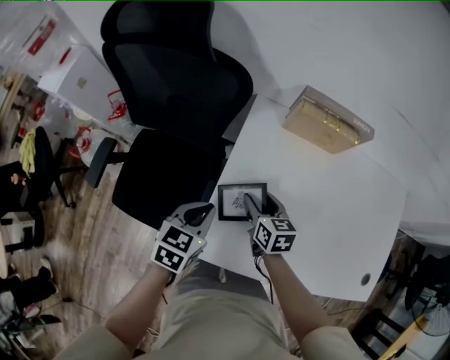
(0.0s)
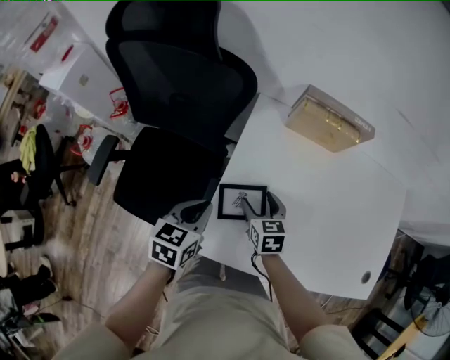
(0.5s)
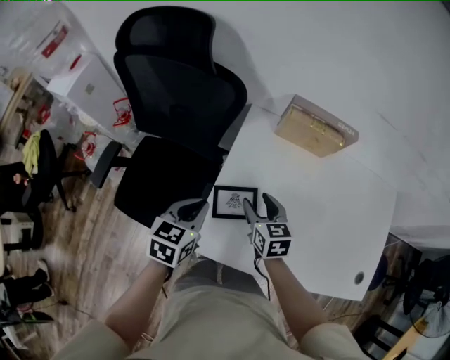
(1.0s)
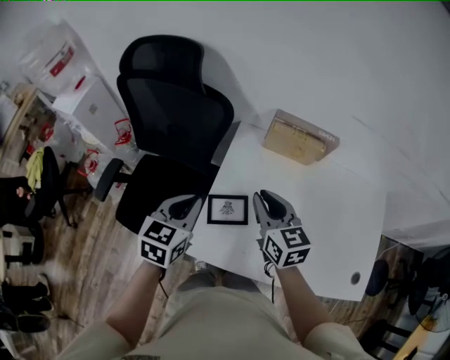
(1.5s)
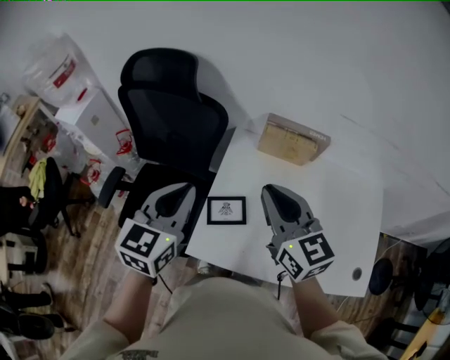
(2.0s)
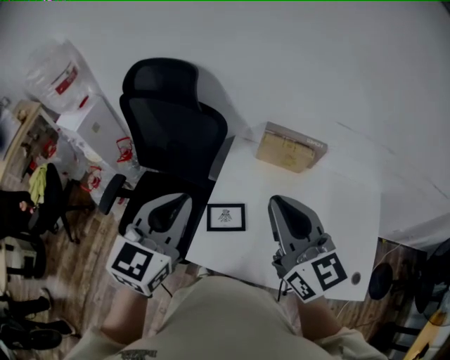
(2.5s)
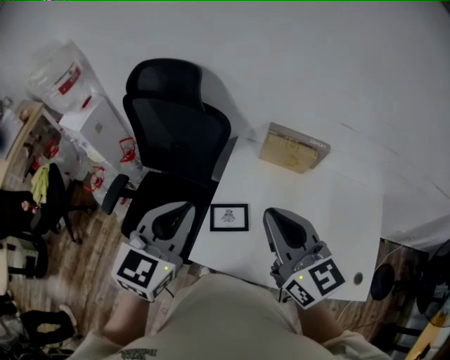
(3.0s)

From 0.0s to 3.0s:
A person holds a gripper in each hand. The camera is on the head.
From 0.0s to 1.5s: The right gripper goes approximately 20 cm upward, changes its angle by some 20 degrees, and closes. The left gripper travels upward by roughly 15 cm.
From 1.5s to 3.0s: The left gripper moves upward, some 15 cm; the right gripper goes approximately 20 cm upward and backward.

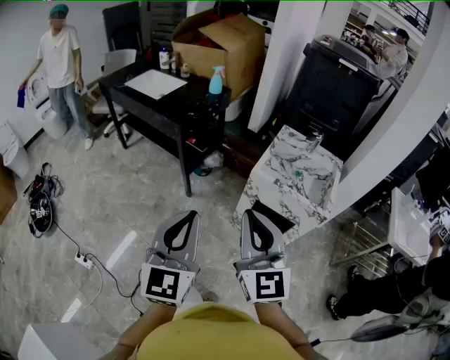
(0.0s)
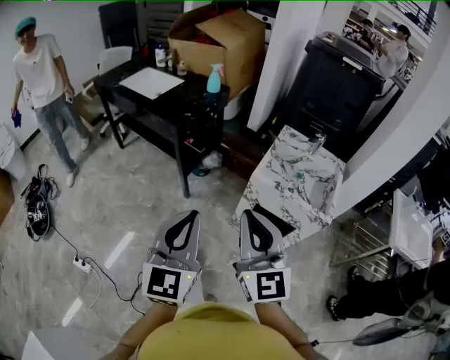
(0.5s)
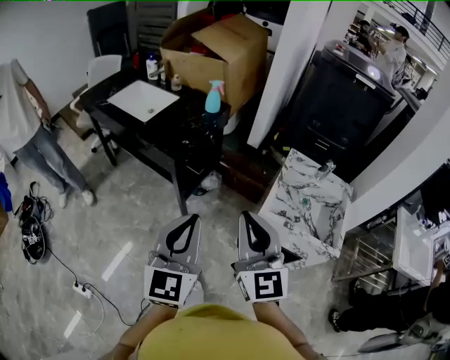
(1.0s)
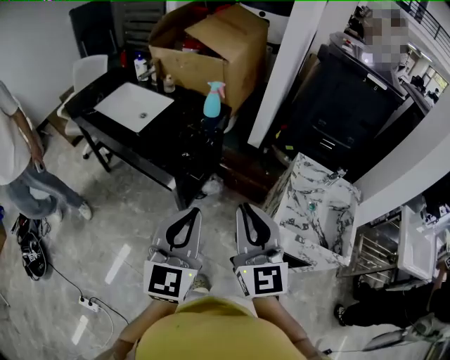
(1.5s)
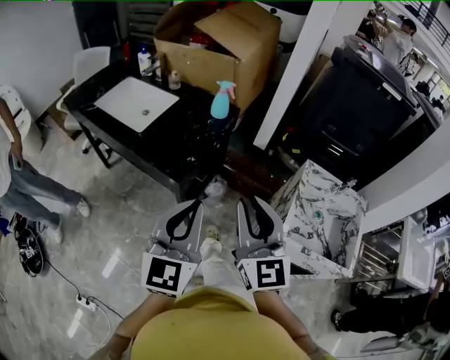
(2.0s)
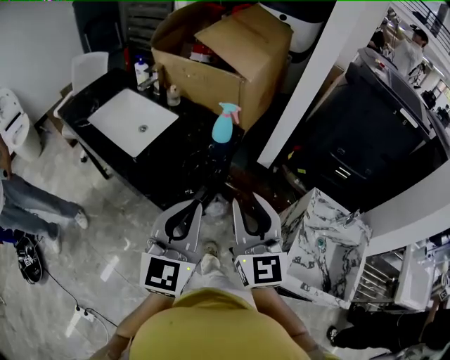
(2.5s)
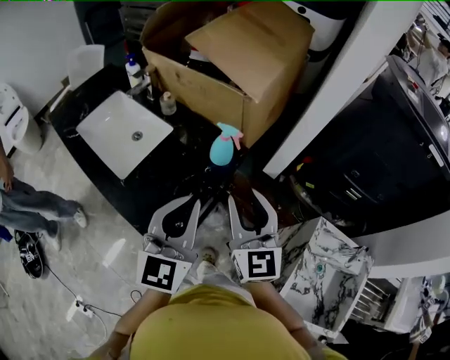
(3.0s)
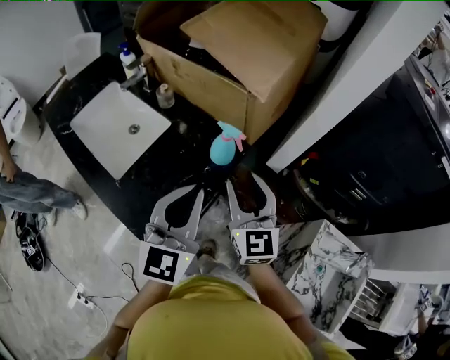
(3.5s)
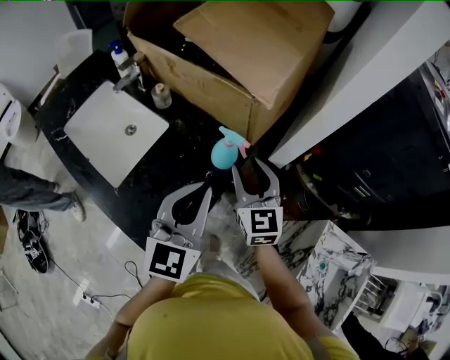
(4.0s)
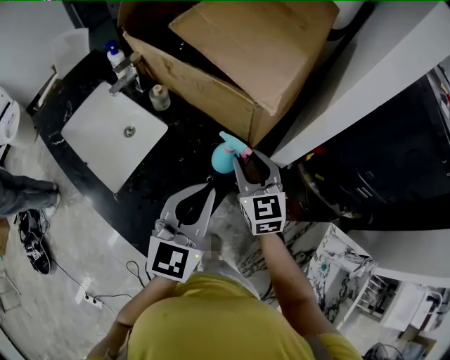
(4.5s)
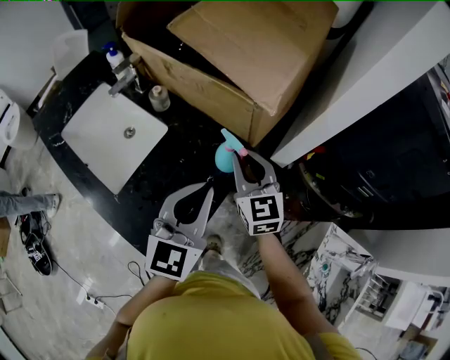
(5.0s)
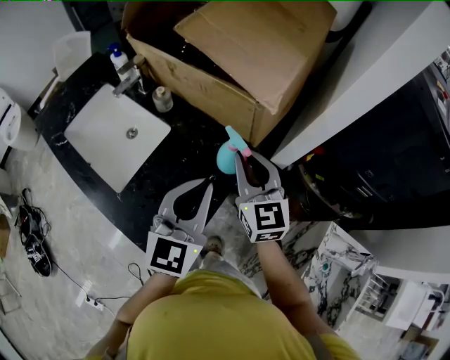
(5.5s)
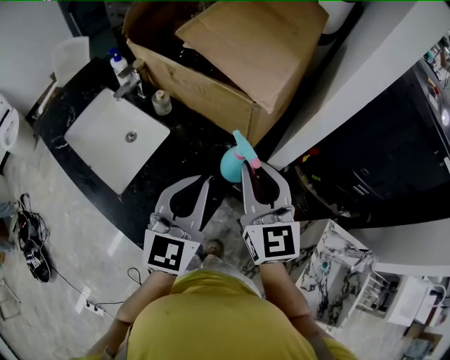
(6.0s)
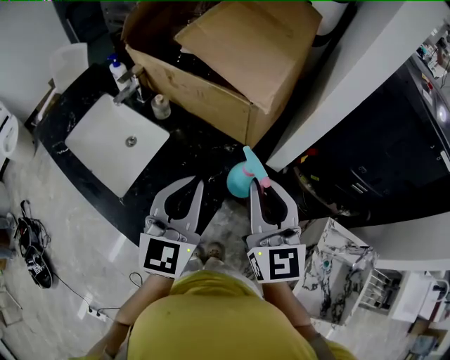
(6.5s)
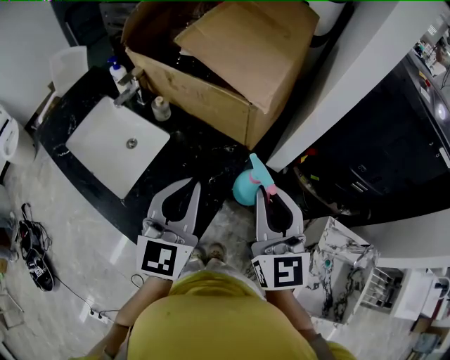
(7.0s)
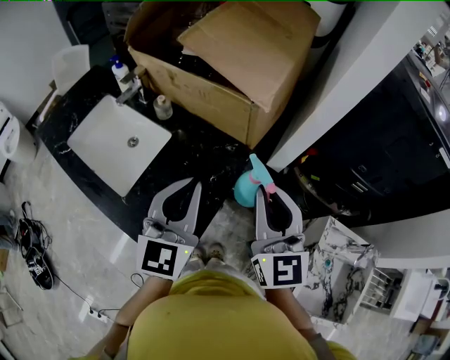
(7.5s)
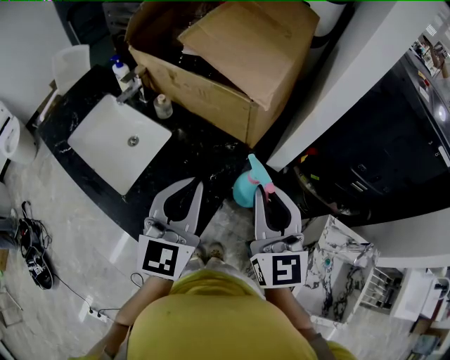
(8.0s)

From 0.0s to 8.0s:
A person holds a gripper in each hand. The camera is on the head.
From 0.0s to 2.0s: The two grippers travel together, forward, about 40 cm.
From 2.0s to 4.0s: Both grippers are carried forward, about 40 cm.
From 4.0s to 6.0s: The right gripper goes some 10 cm upward, and closes.
From 6.0s to 8.0s: The right gripper moves backward, about 5 cm.

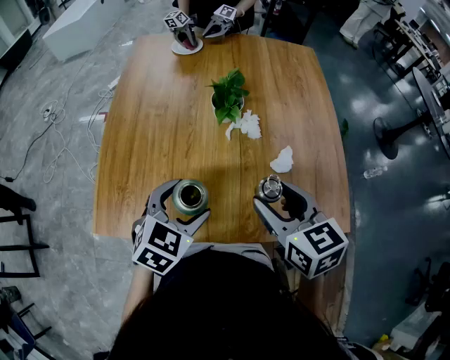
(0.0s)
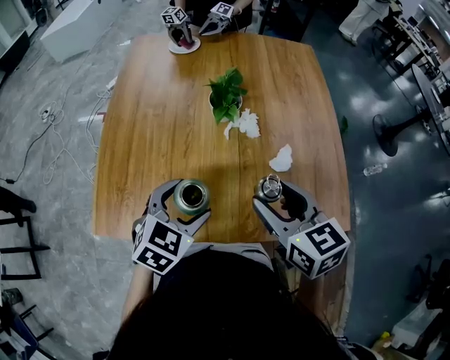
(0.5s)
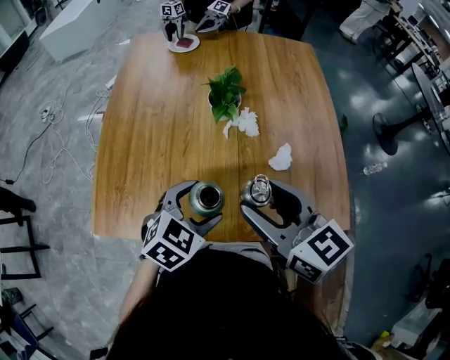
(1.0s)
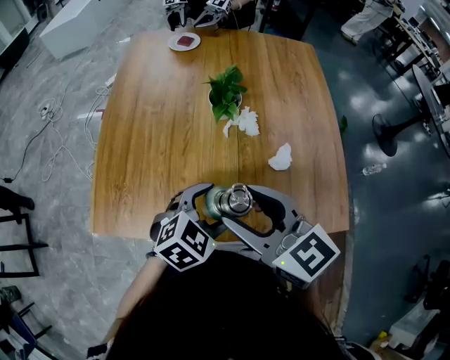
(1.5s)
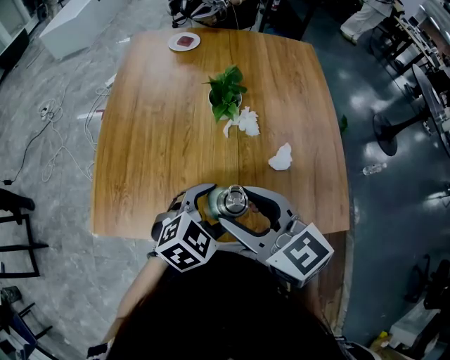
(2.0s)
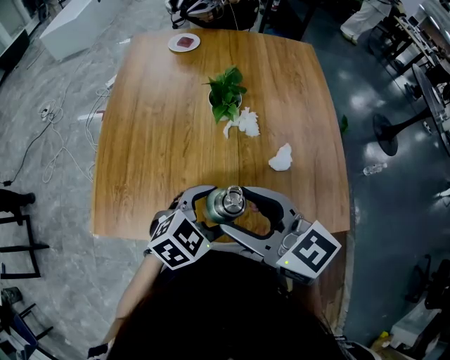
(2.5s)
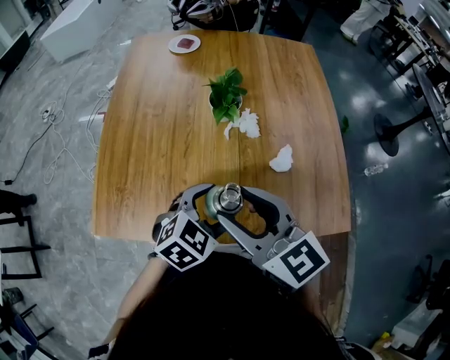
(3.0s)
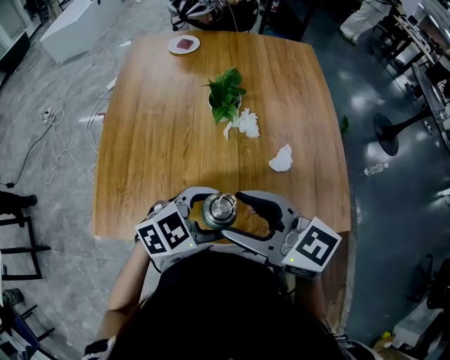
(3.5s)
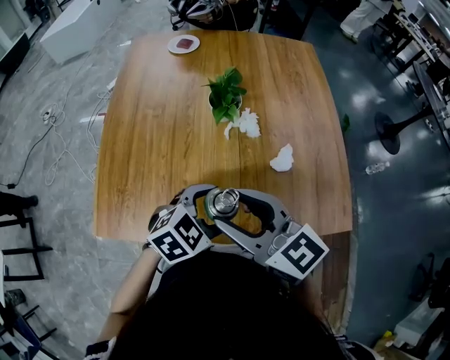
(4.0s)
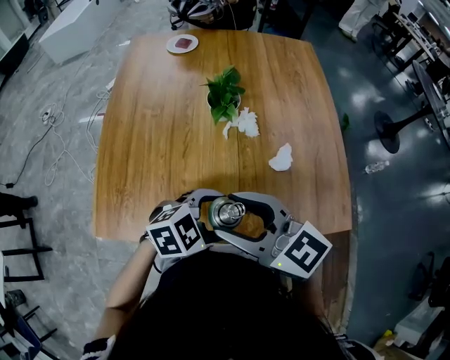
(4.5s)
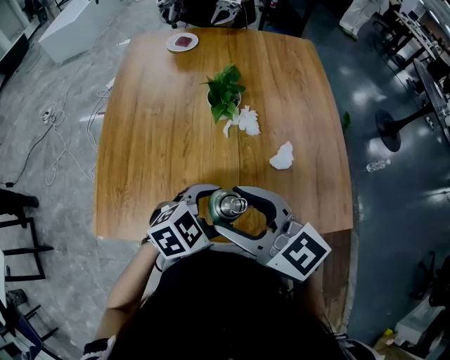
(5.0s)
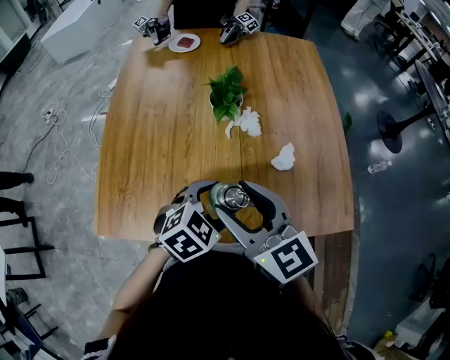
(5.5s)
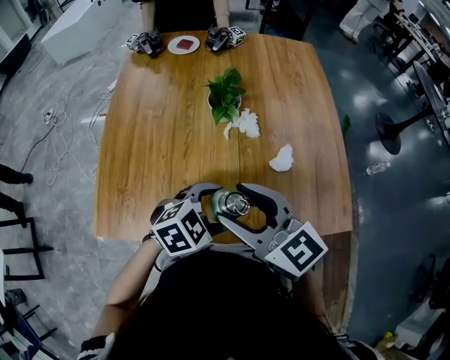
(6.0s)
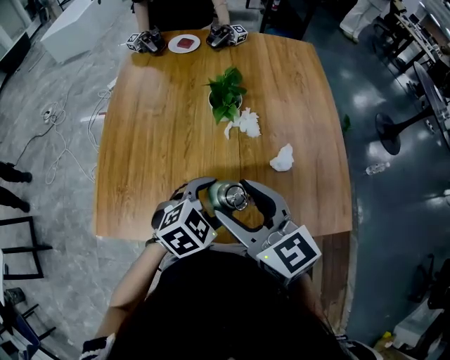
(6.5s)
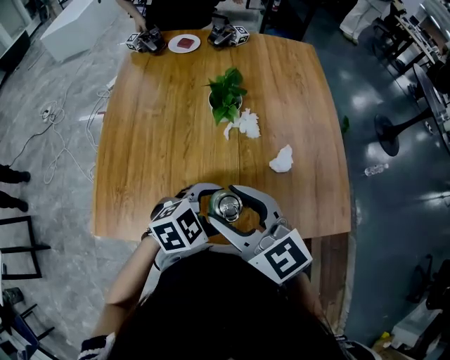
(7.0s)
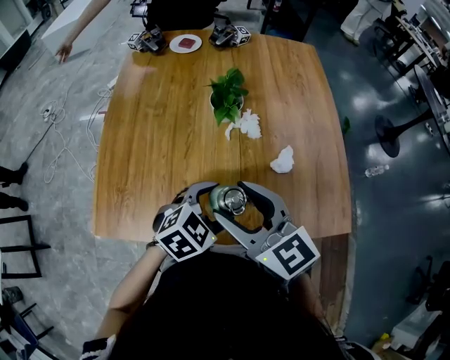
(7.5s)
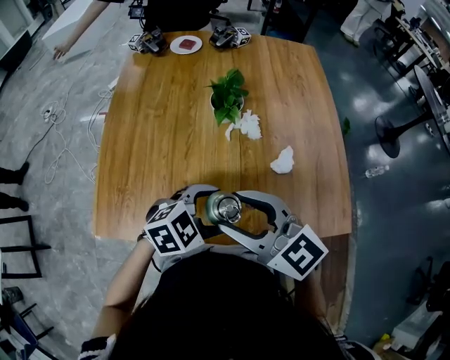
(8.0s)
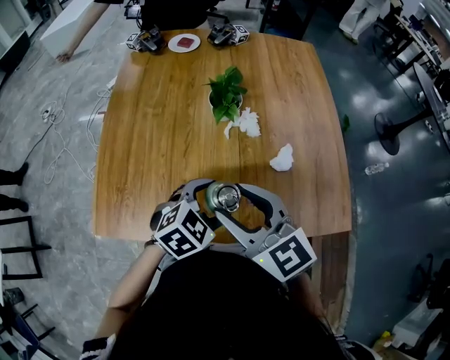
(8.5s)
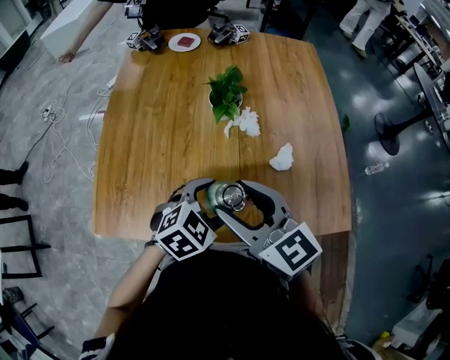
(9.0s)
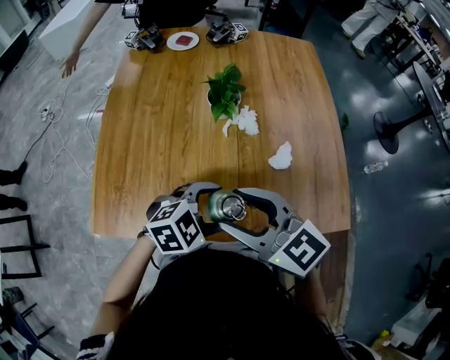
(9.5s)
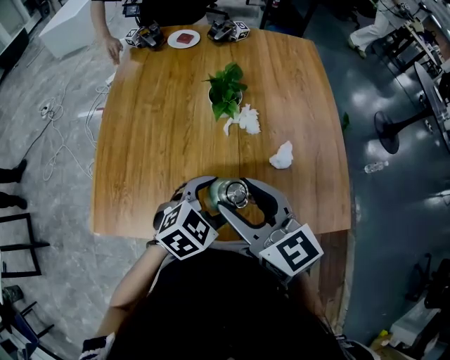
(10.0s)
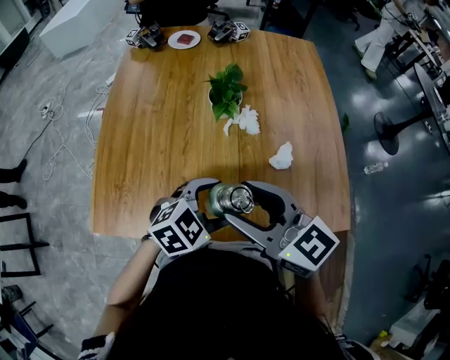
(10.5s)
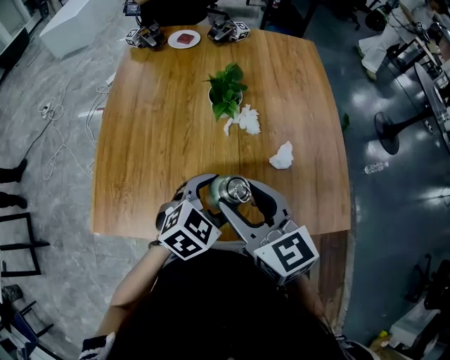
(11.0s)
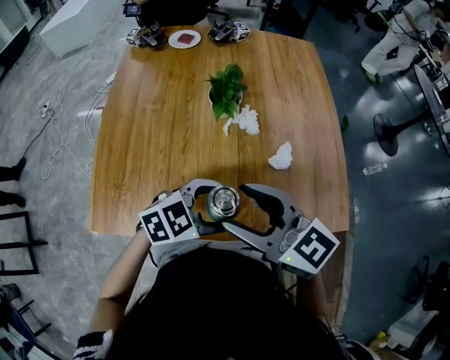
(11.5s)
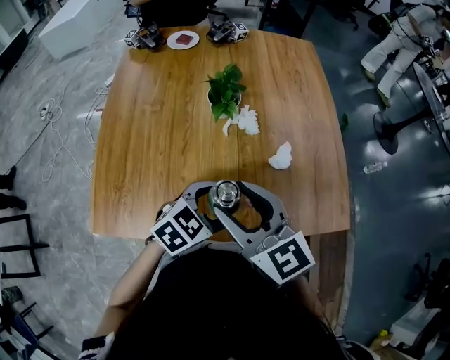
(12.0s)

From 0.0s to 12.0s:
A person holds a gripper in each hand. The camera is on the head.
From 0.0s to 2.0s: The right gripper shifts approximately 10 cm to the left, and turns by about 20 degrees; the left gripper shifts approximately 10 cm to the right.
From 4.0s to 8.0s: There are only small adjustments of the grippers.

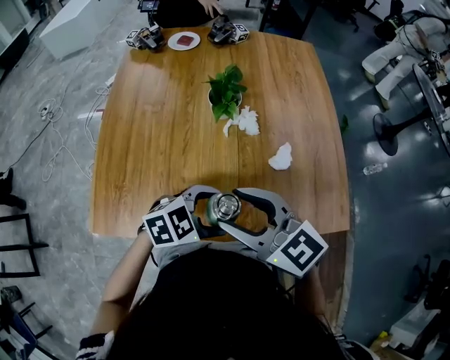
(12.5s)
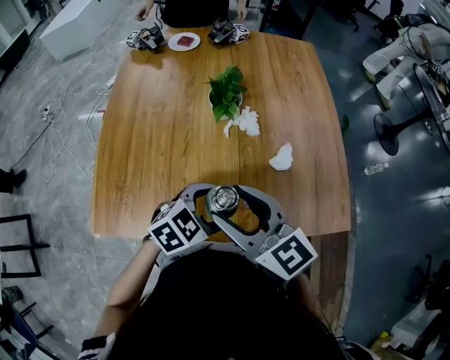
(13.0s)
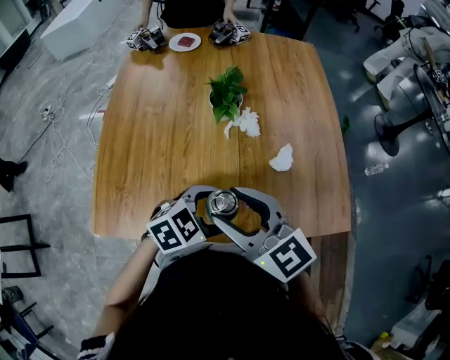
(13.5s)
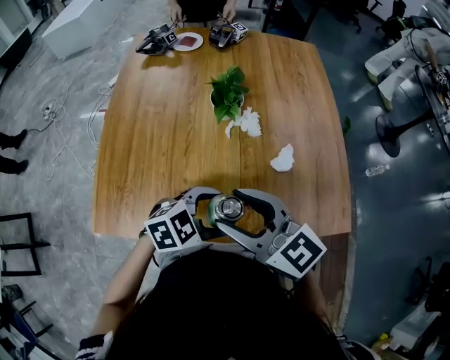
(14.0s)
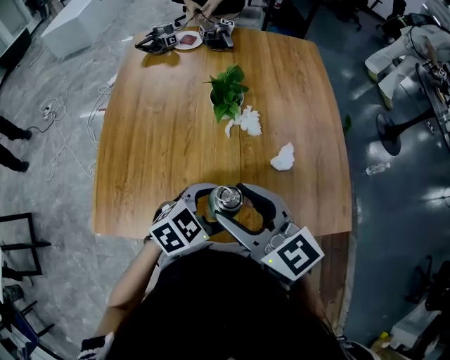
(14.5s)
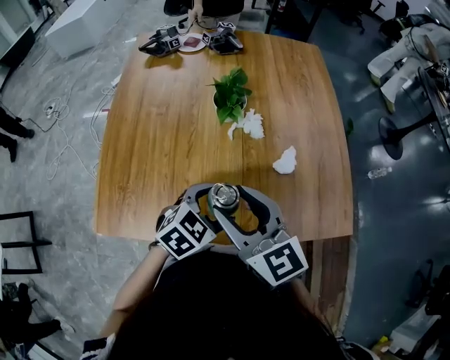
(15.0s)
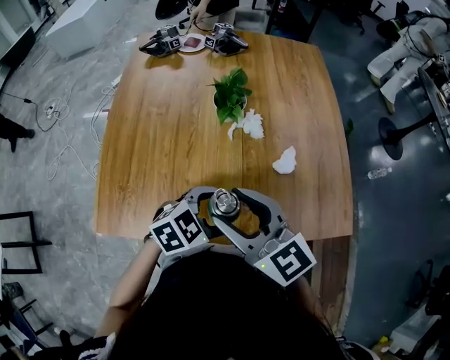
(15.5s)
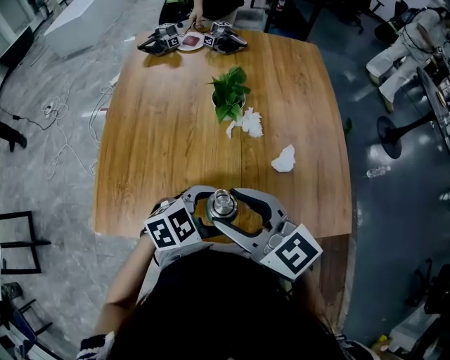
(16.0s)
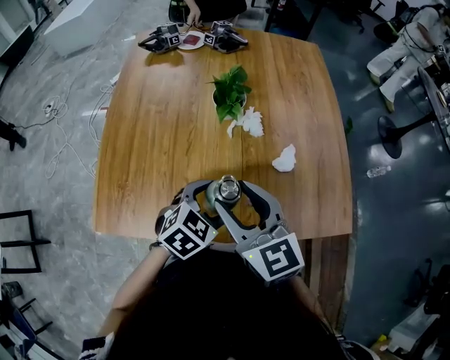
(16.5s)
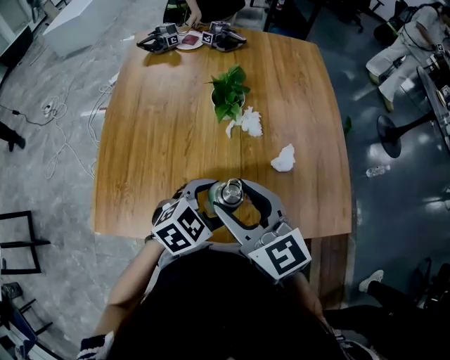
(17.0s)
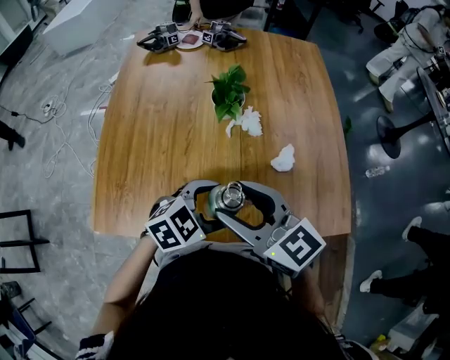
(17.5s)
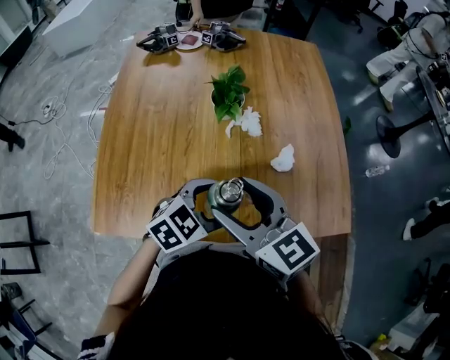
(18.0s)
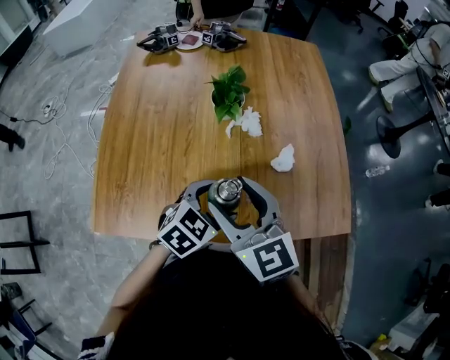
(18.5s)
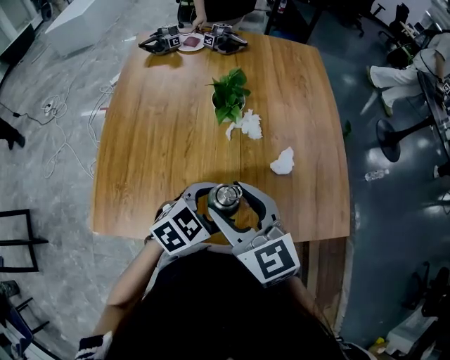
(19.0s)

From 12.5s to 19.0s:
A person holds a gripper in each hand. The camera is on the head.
From 14.5s to 19.0s: The grippers move only a little.
